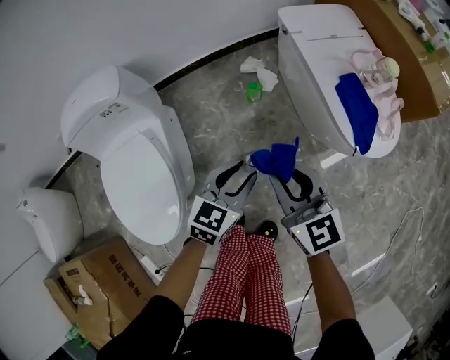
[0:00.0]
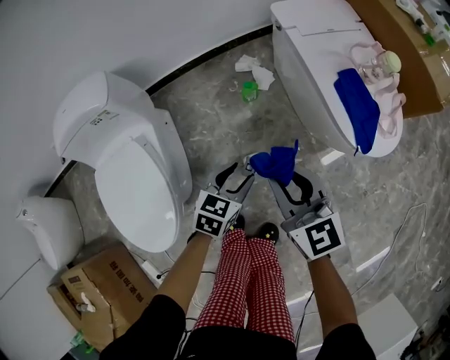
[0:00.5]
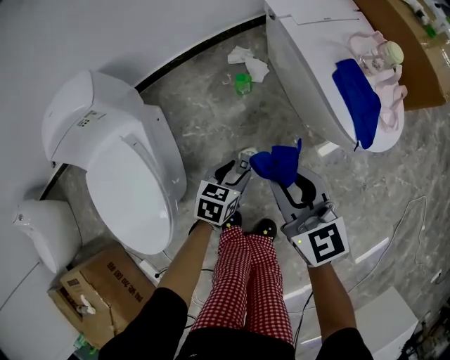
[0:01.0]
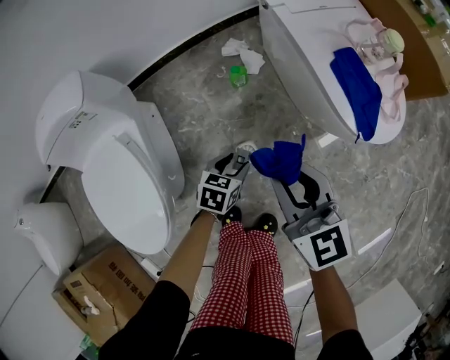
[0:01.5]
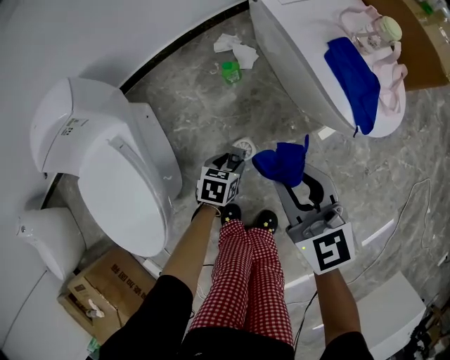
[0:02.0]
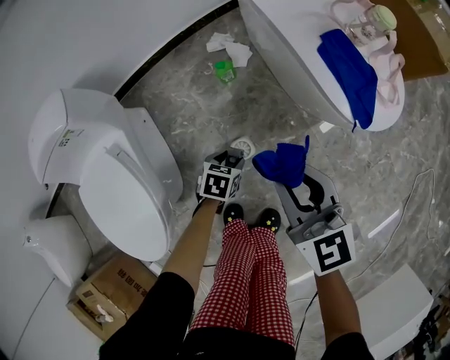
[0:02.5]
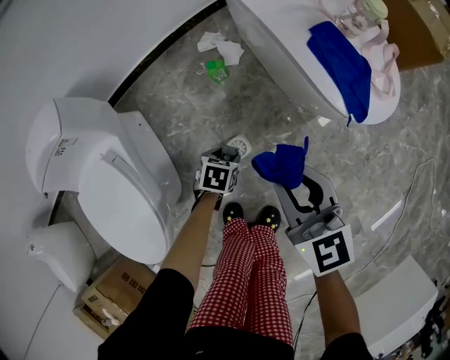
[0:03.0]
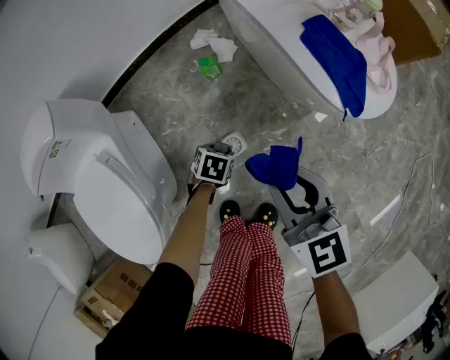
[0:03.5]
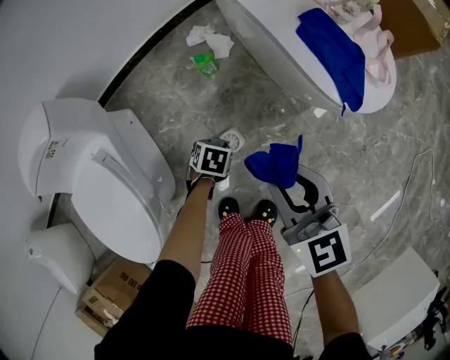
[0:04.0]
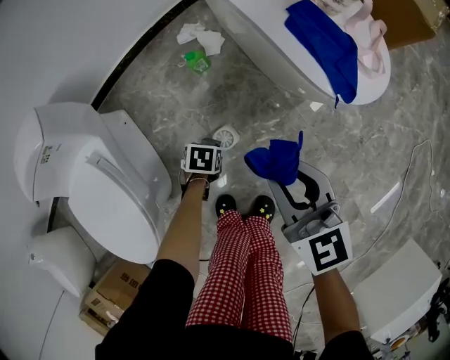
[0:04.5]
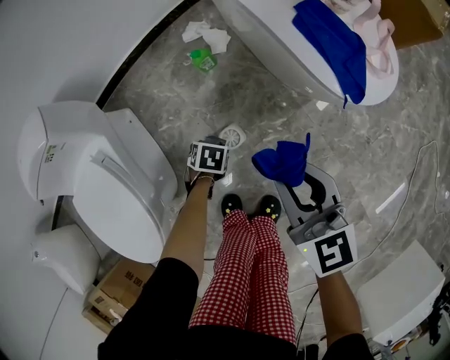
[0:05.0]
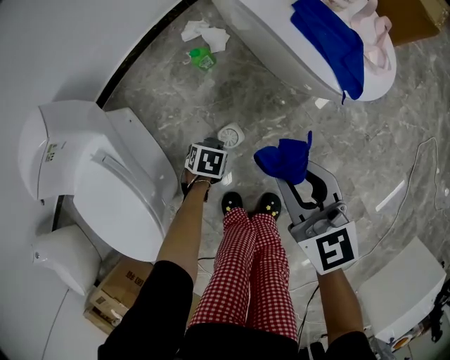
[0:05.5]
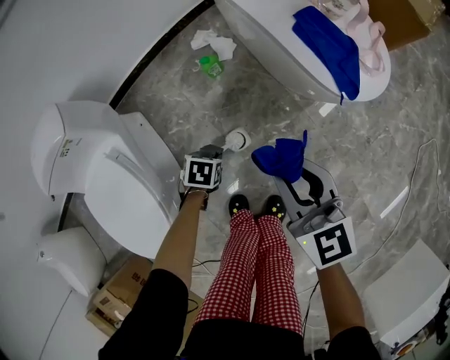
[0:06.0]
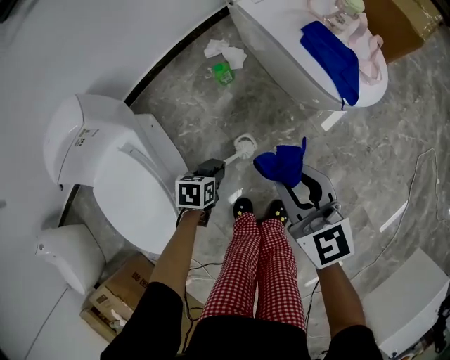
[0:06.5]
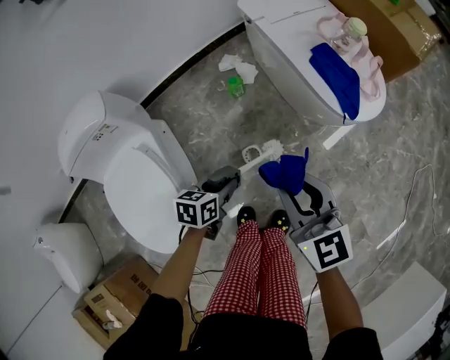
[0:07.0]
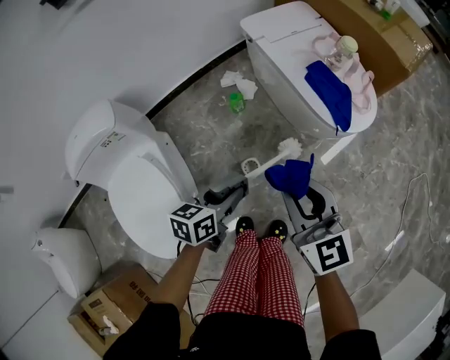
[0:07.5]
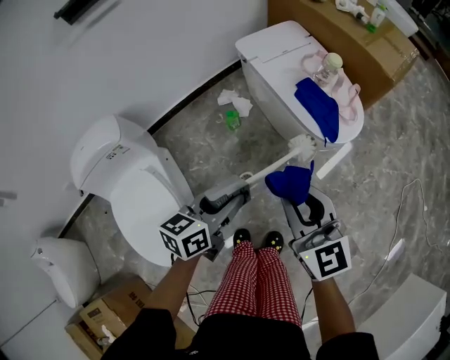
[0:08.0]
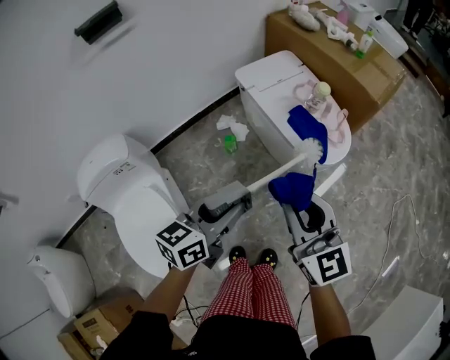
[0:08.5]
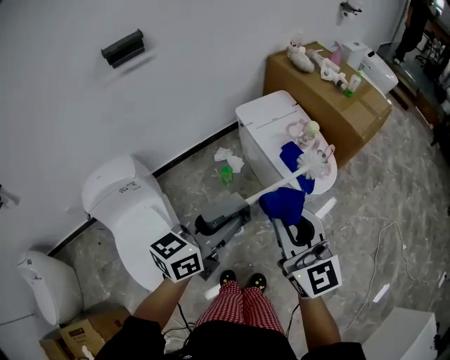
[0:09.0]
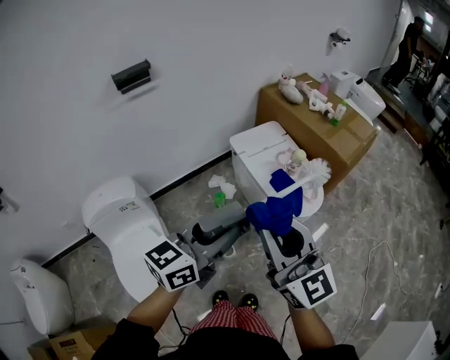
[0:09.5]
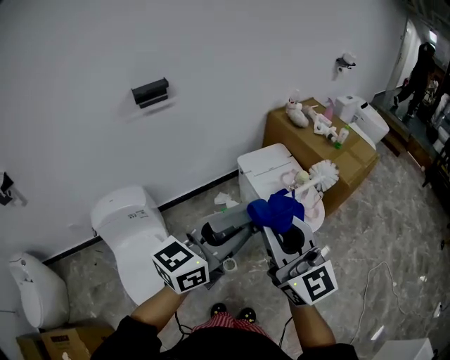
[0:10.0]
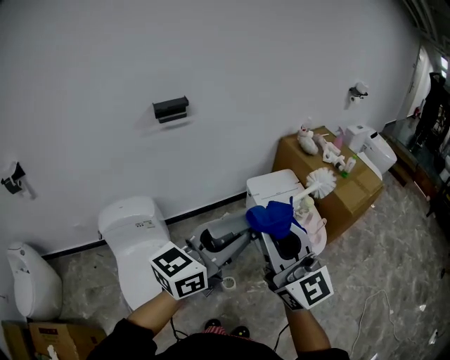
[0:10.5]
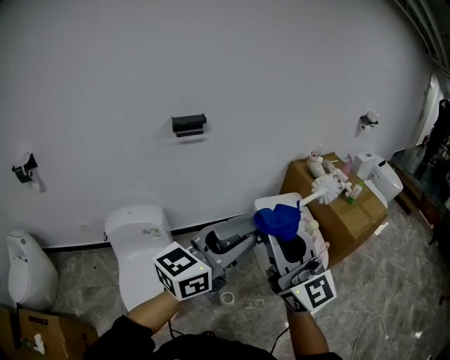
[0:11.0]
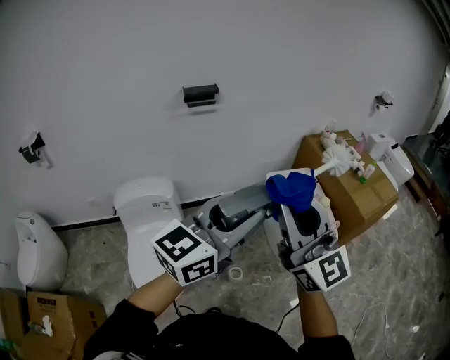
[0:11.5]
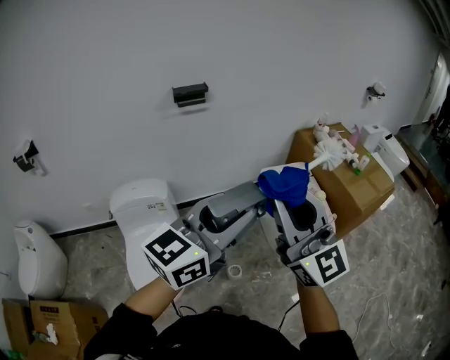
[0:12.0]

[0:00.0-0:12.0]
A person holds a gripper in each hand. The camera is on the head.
0.0 to 2.0 s: The left gripper travels downward by approximately 25 cm, and turns by approximately 30 degrees. Meanwhile the right gripper shifts some 10 cm to the right and downward.
2.0 to 4.0 s: The left gripper heads downward, covering roughly 5 cm, and rotates roughly 20 degrees; the right gripper shifts by roughly 5 cm.
4.0 to 6.0 s: The left gripper shifts by about 10 cm.
6.0 to 8.0 s: The right gripper is displaced upward by about 20 cm; the left gripper travels upward by some 35 cm, and angles its fingers upward, by some 60 degrees.
8.0 to 10.0 s: The two grippers go some 35 cm upward. The right gripper swivels about 30 degrees, while the left gripper rotates about 30 degrees.
10.0 to 12.0 s: Both grippers travel together upward, some 10 cm.

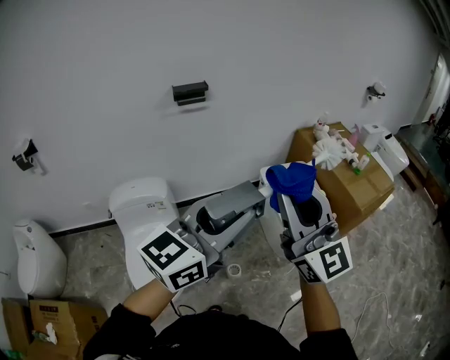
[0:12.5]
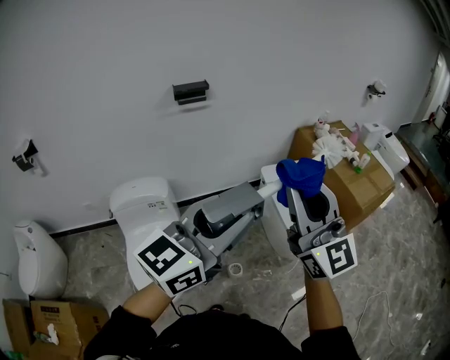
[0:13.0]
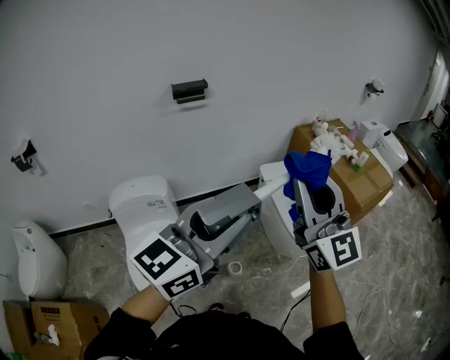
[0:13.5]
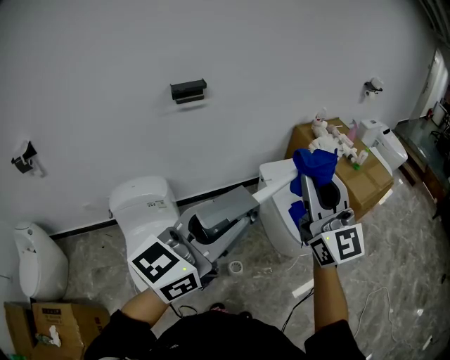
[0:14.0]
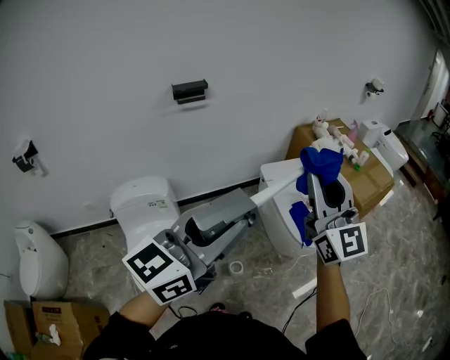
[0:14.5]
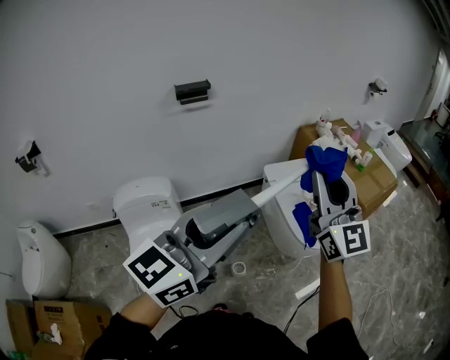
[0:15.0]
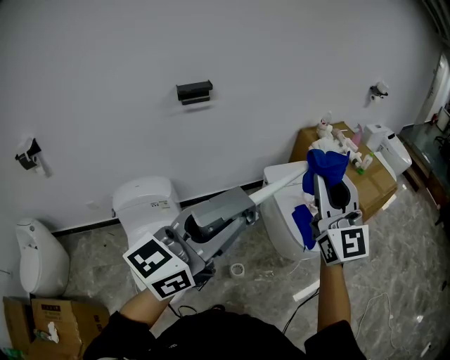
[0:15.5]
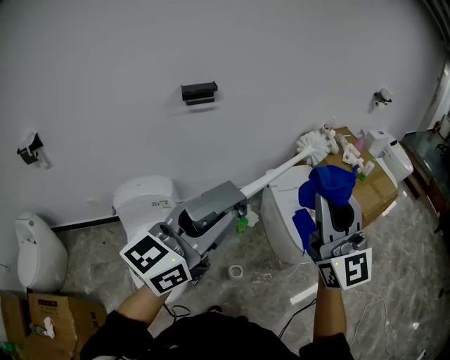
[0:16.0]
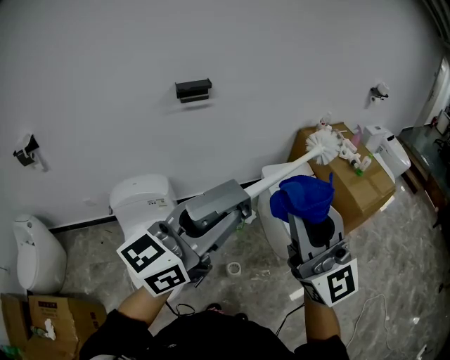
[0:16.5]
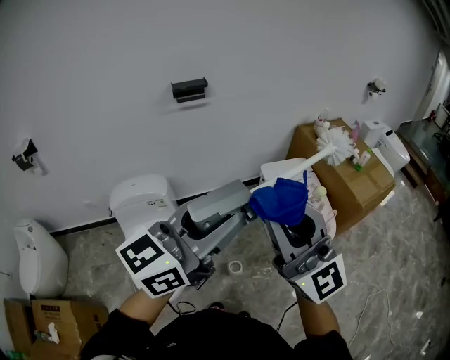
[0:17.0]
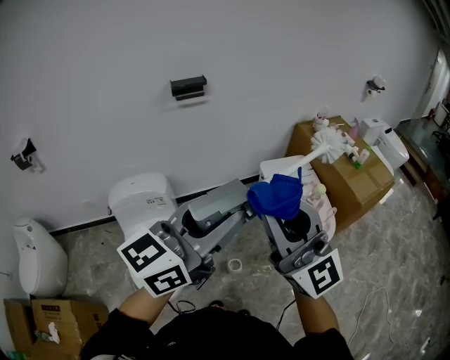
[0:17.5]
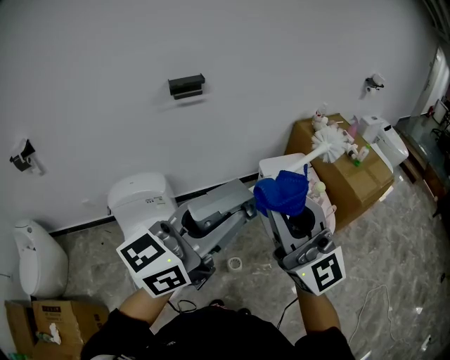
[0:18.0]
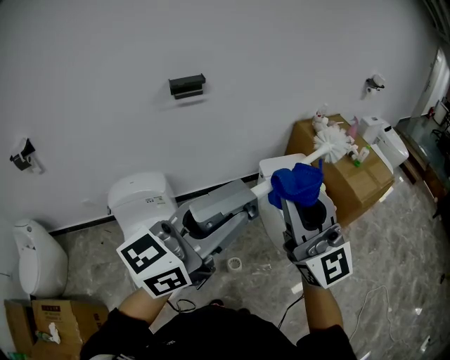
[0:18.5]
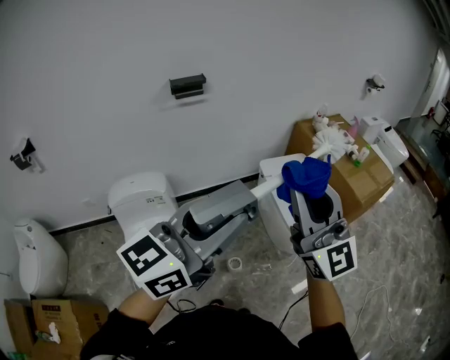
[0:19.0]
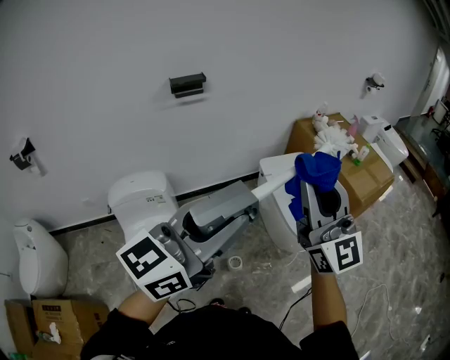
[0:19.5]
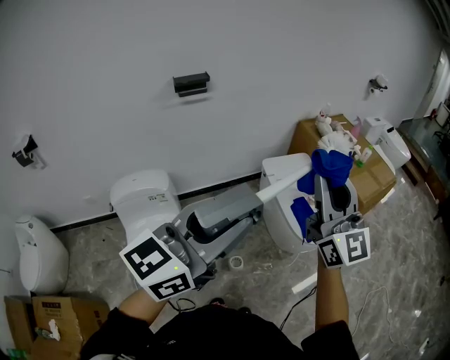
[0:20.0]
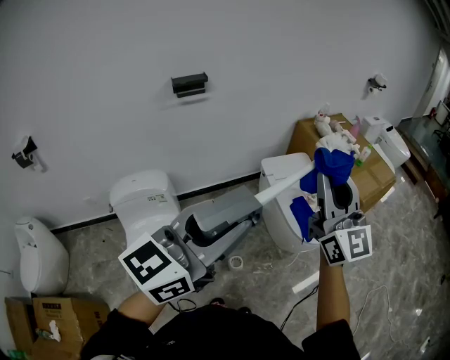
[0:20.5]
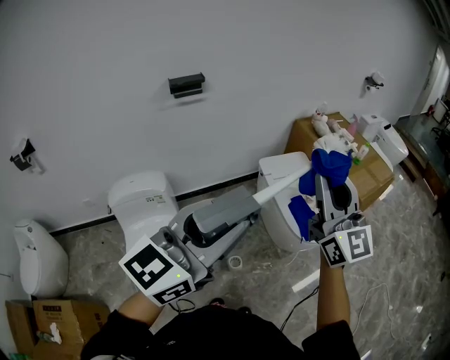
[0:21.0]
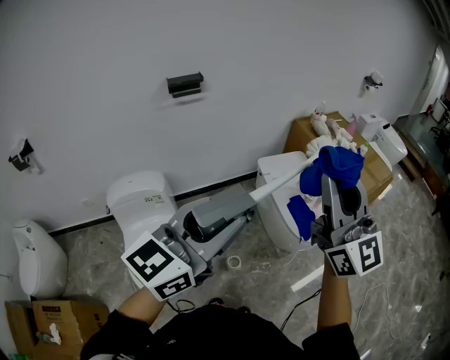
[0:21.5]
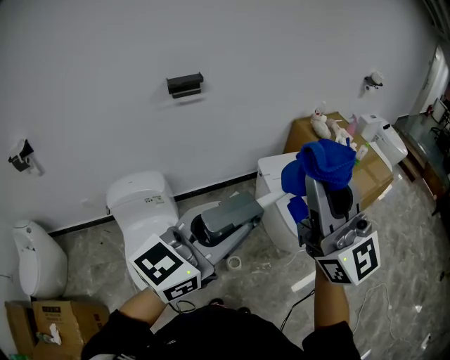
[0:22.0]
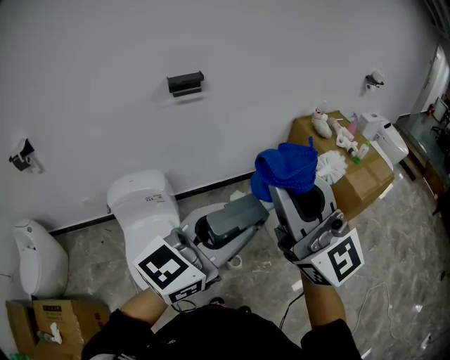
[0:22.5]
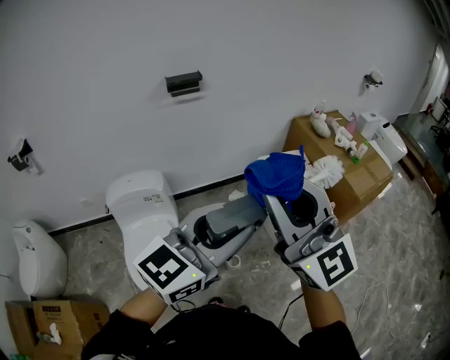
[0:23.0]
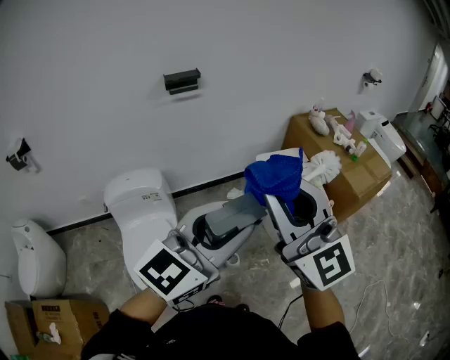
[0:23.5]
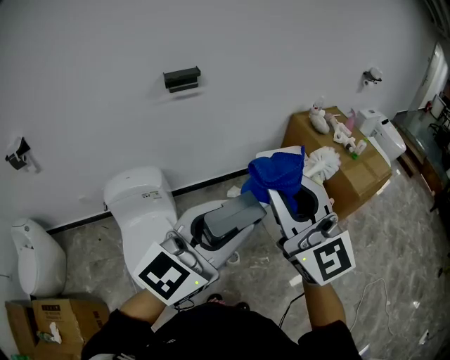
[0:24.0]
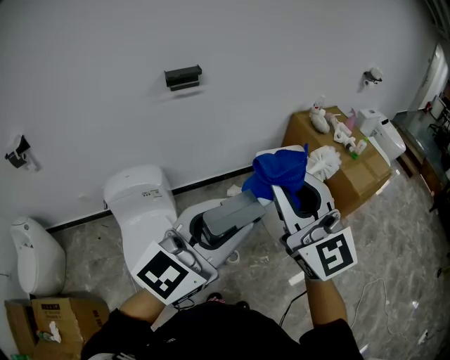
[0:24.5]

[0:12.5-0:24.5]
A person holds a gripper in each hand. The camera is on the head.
12.5 to 14.5 s: The right gripper is displaced to the right by about 5 cm.
14.5 to 16.5 s: The right gripper goes some 10 cm backward.
16.5 to 18.5 s: There are only small adjustments of the grippers.
18.5 to 20.5 s: The right gripper heads to the right and forward, covering some 10 cm.
20.5 to 22.5 s: The right gripper moves to the left, backward and upward, some 15 cm, and turns by about 20 degrees.
22.5 to 24.5 s: The right gripper shifts by approximately 5 cm.

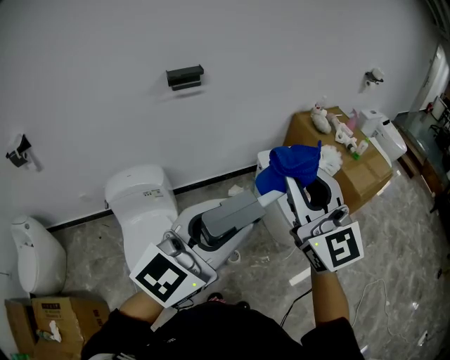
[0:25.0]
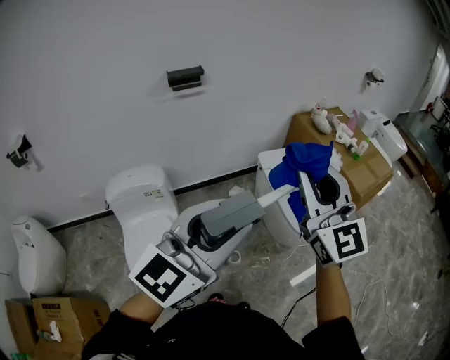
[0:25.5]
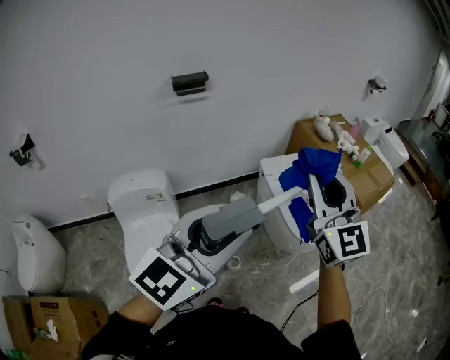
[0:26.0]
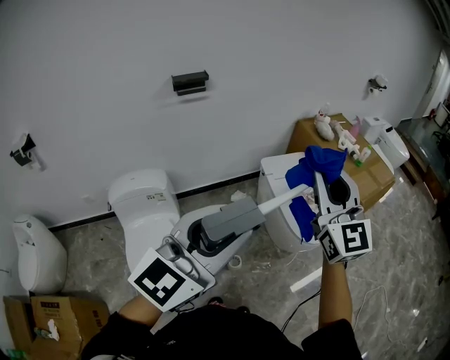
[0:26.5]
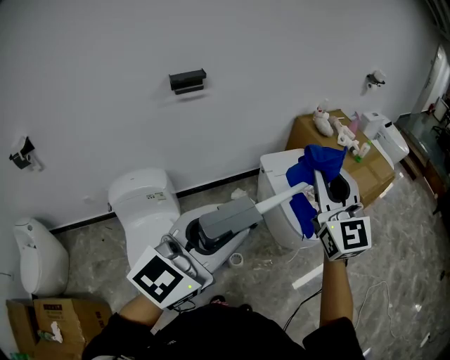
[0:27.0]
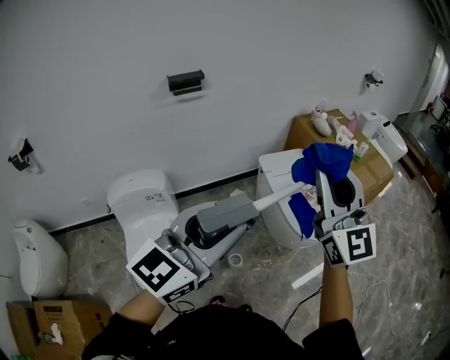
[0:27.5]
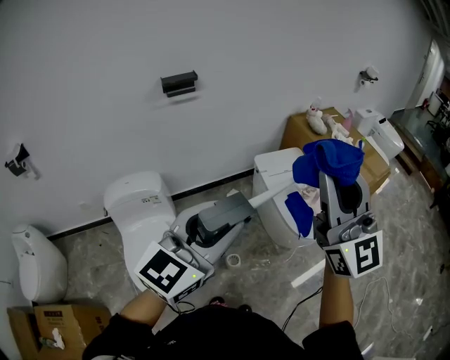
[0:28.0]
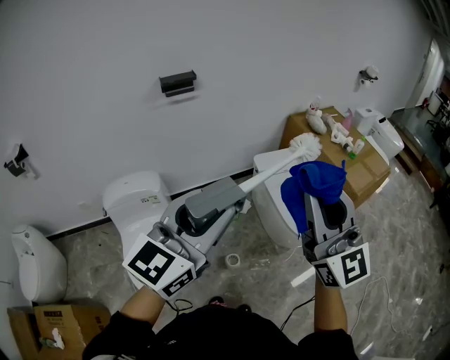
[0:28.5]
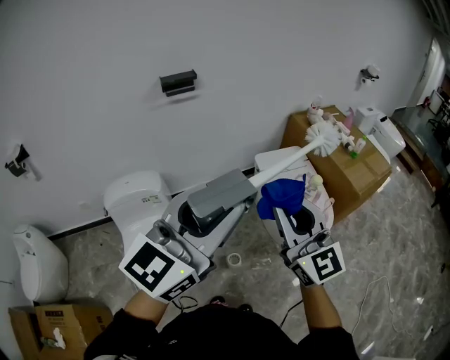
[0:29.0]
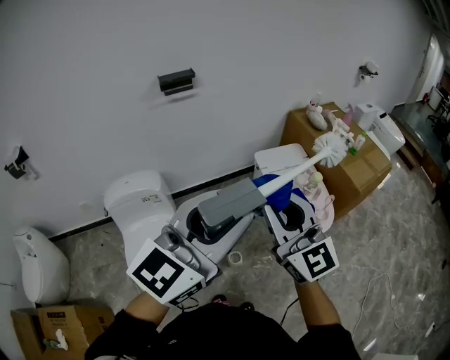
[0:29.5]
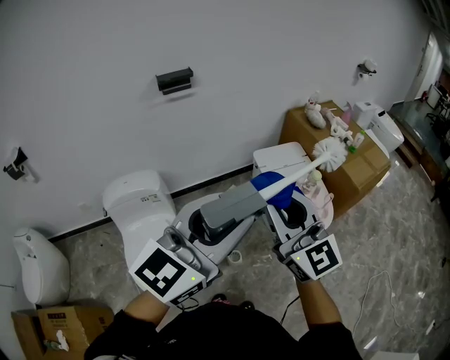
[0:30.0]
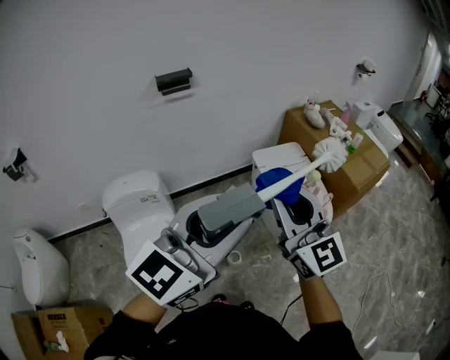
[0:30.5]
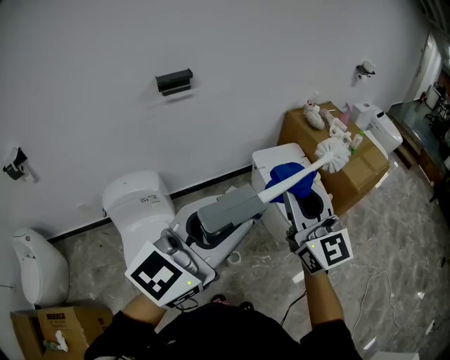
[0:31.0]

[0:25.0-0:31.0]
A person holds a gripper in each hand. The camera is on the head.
25.0 to 27.0 s: The right gripper shifts about 10 cm to the right and forward.
27.0 to 29.0 s: The right gripper moves backward, to the left and downward, some 10 cm.
29.0 to 31.0 s: The grippers move only a little.
